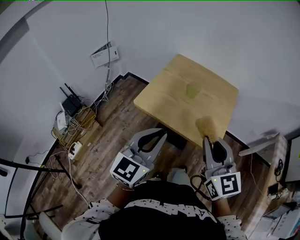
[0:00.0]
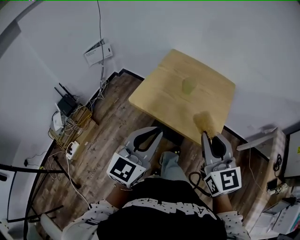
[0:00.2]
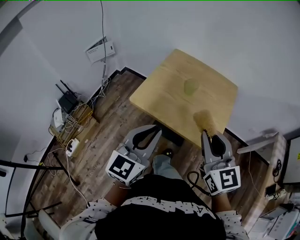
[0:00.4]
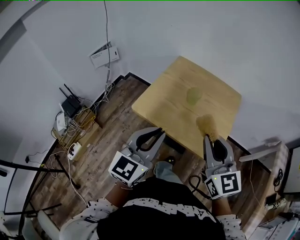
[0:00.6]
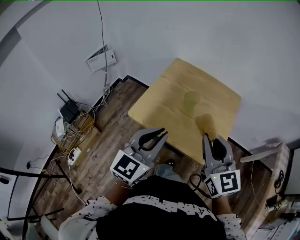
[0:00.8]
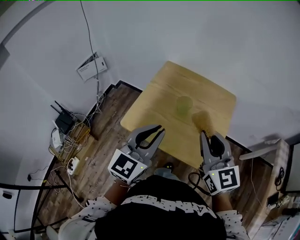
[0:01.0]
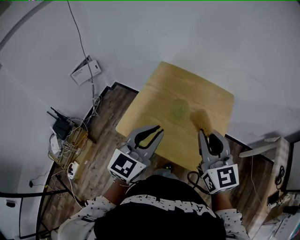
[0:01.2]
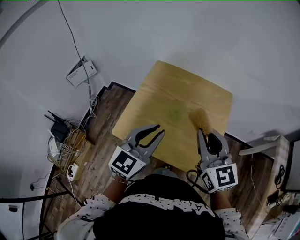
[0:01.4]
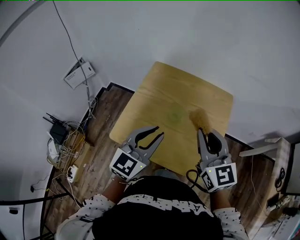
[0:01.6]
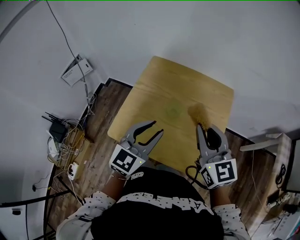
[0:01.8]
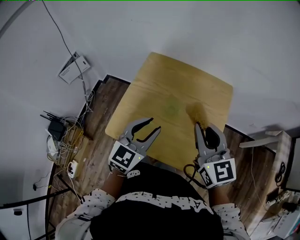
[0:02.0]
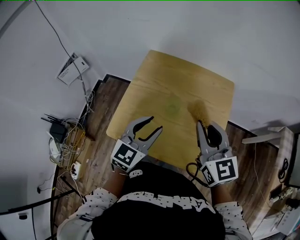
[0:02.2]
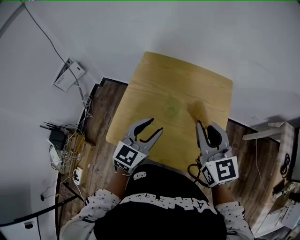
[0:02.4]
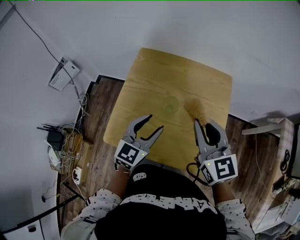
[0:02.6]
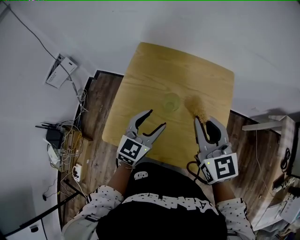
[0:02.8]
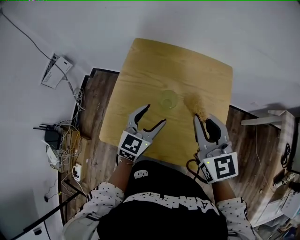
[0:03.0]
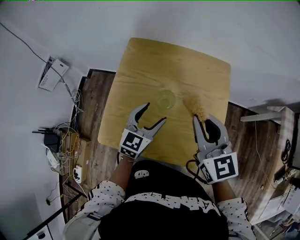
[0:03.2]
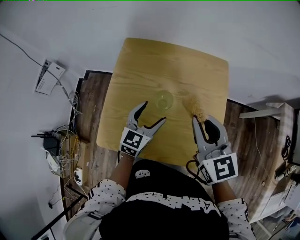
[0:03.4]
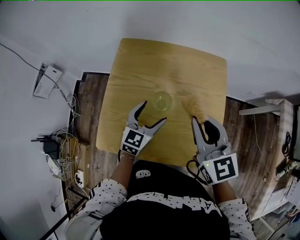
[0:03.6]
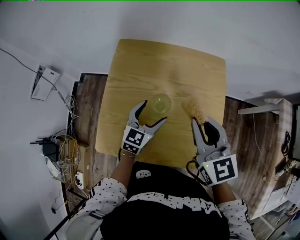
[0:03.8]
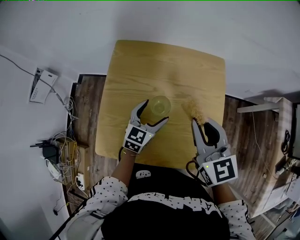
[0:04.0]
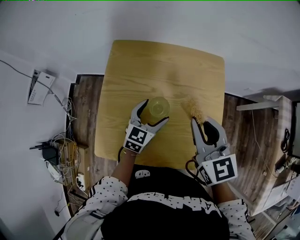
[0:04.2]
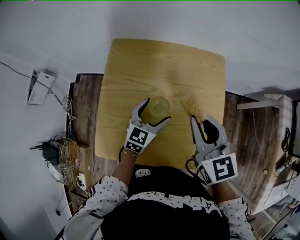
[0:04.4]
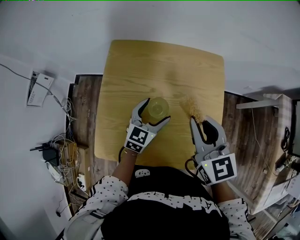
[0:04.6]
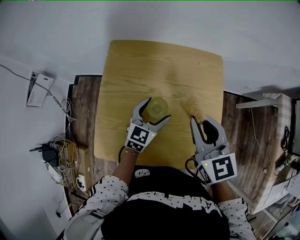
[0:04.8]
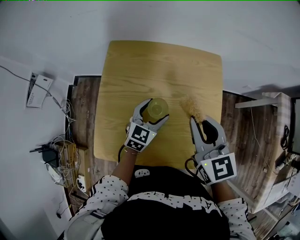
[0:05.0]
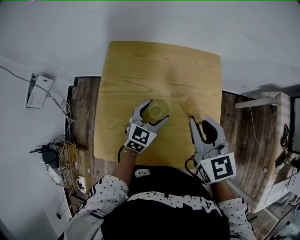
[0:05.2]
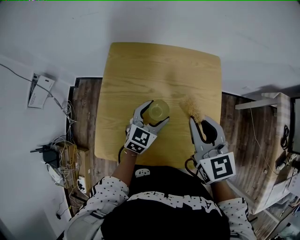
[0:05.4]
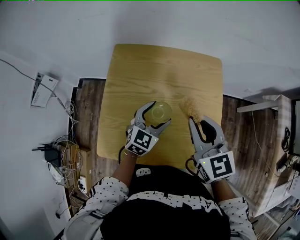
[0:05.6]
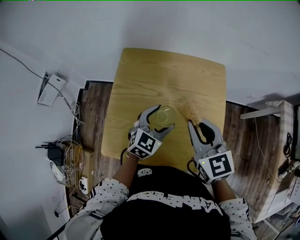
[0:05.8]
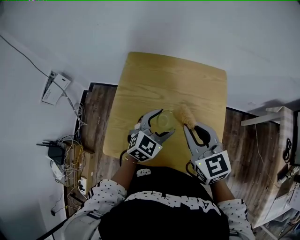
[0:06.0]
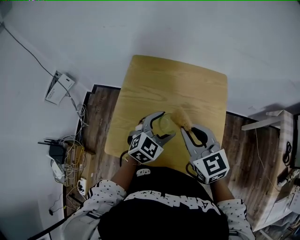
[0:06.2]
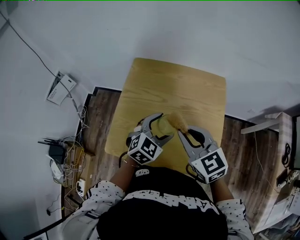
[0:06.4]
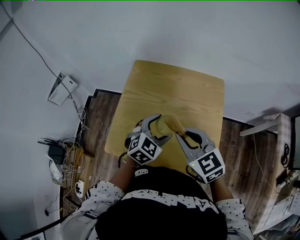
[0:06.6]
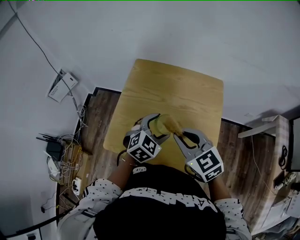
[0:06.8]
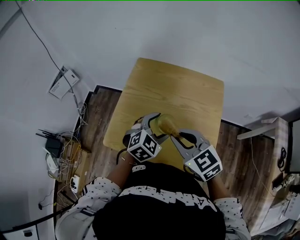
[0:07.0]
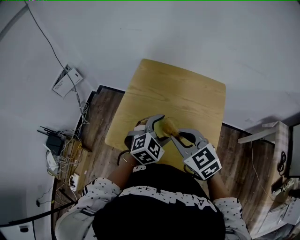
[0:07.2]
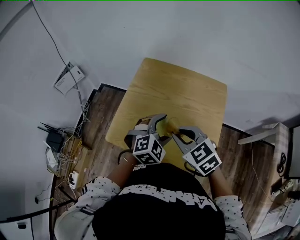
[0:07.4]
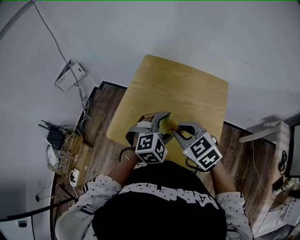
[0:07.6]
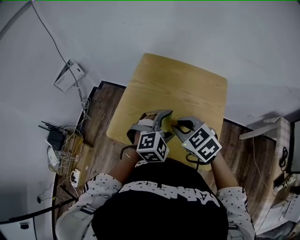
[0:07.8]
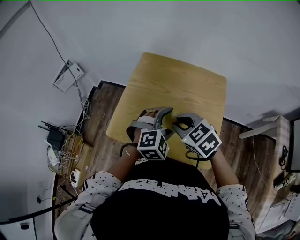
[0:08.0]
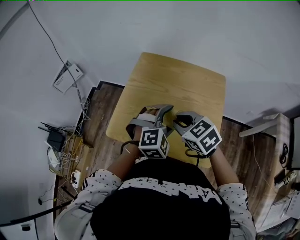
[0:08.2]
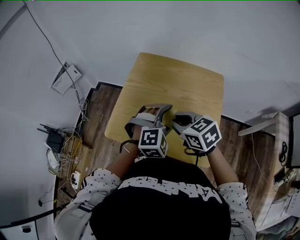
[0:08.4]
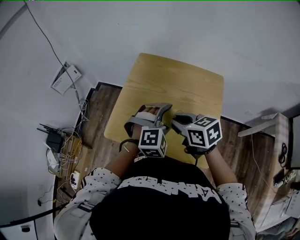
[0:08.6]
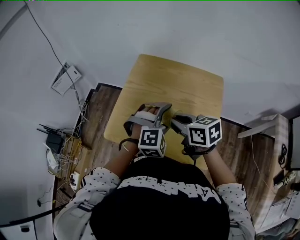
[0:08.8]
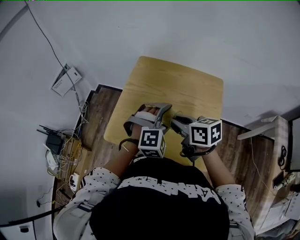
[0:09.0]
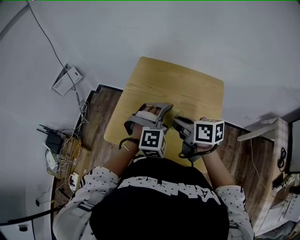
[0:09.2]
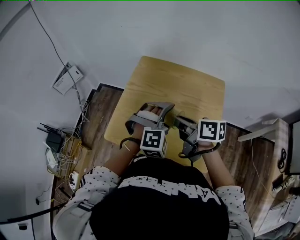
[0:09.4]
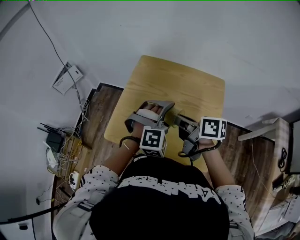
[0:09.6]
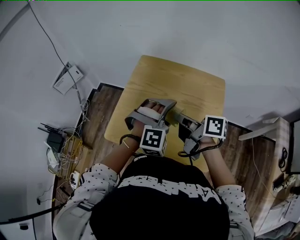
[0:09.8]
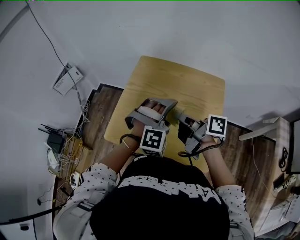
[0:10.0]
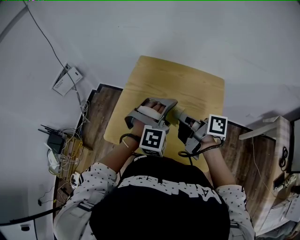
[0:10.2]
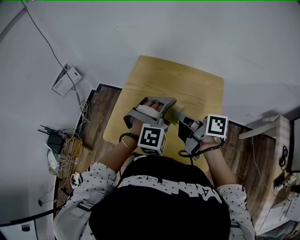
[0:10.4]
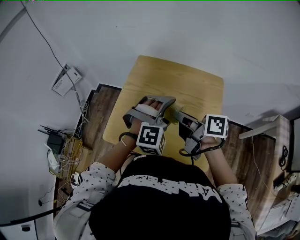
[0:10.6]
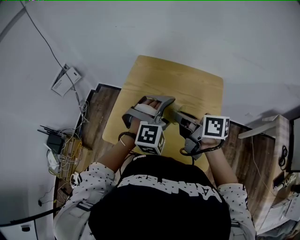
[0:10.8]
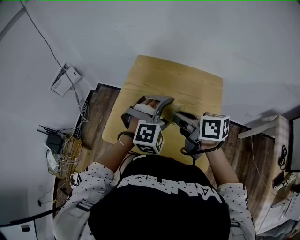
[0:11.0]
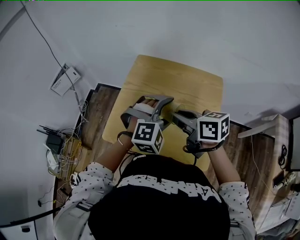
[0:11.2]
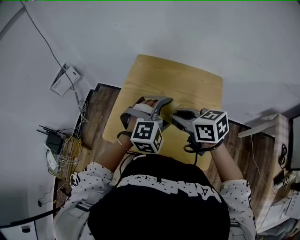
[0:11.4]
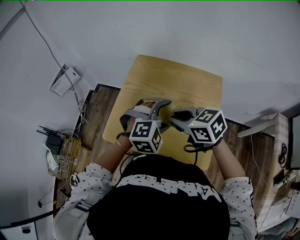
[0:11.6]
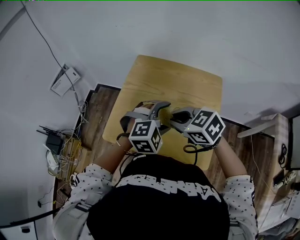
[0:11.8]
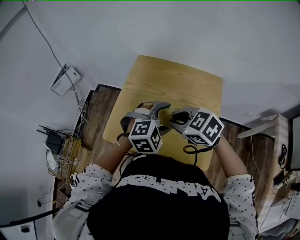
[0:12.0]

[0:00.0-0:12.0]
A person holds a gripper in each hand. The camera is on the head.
0:00.0 to 0:01.6: Both grippers travel together forward, roughly 25 cm.
0:01.6 to 0:03.0: The left gripper is displaced downward and forward by some 15 cm, and opens. The right gripper heads forward and downward, covering some 10 cm.
0:03.0 to 0:04.4: The left gripper goes approximately 10 cm downward and forward.
0:04.4 to 0:06.0: The left gripper heads upward, covering about 5 cm.
0:06.0 to 0:07.6: The left gripper heads backward, covering roughly 5 cm, and swivels approximately 20 degrees; the right gripper goes approximately 10 cm backward and to the left, and changes its angle by some 30 degrees.
0:07.6 to 0:09.0: The right gripper rotates around the line of its fingers by approximately 40 degrees, clockwise from behind, while the left gripper rotates roughly 20 degrees.
0:09.0 to 0:10.4: The right gripper rotates roughly 30 degrees.
0:10.4 to 0:12.0: The left gripper changes its angle by about 30 degrees; the right gripper moves some 5 cm, and twists some 70 degrees counterclockwise, seen from behind.

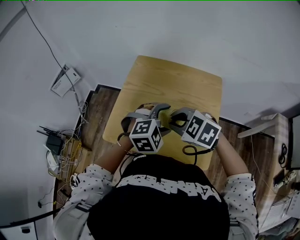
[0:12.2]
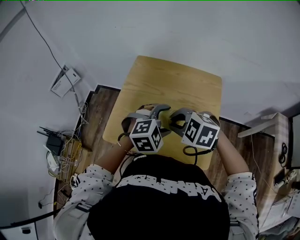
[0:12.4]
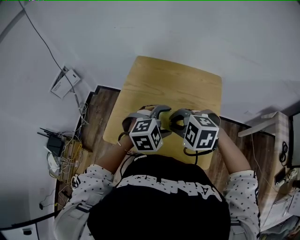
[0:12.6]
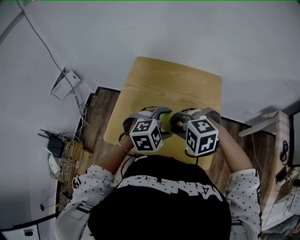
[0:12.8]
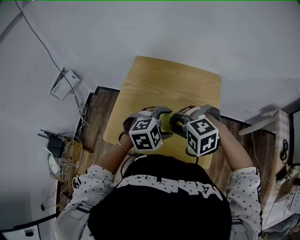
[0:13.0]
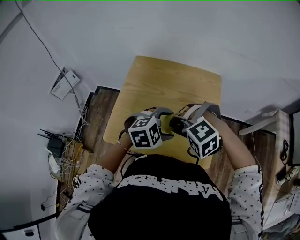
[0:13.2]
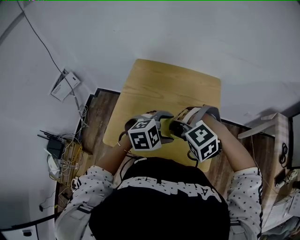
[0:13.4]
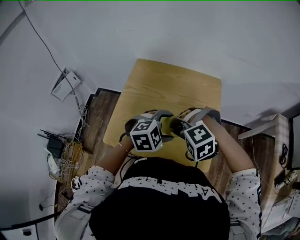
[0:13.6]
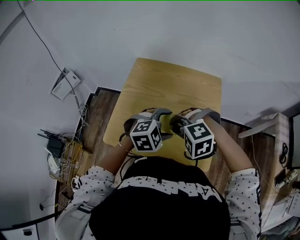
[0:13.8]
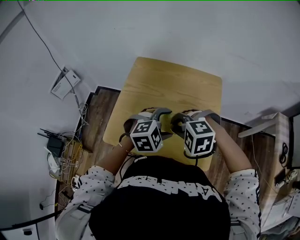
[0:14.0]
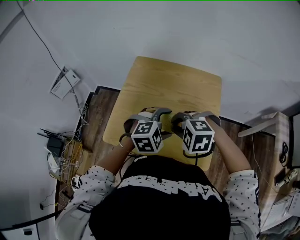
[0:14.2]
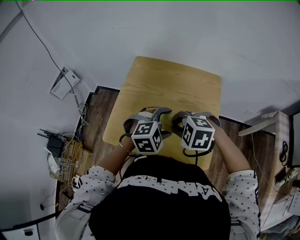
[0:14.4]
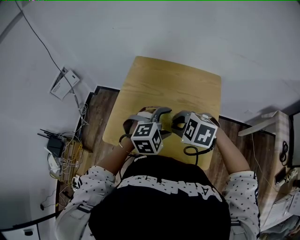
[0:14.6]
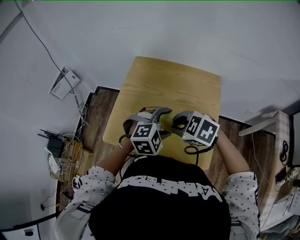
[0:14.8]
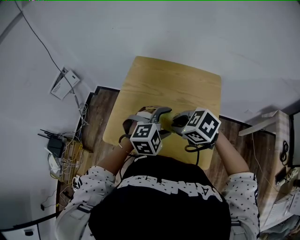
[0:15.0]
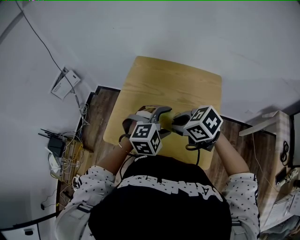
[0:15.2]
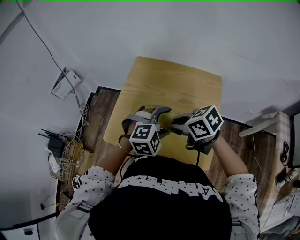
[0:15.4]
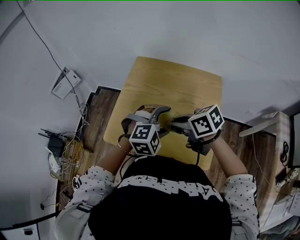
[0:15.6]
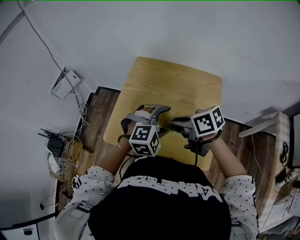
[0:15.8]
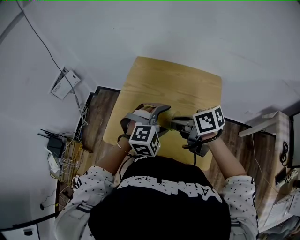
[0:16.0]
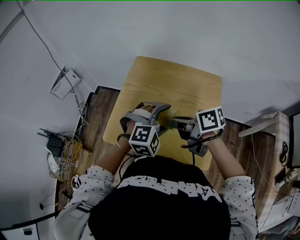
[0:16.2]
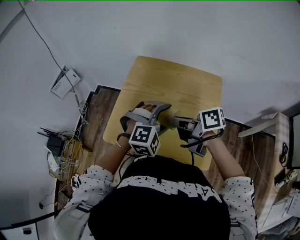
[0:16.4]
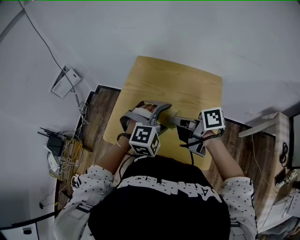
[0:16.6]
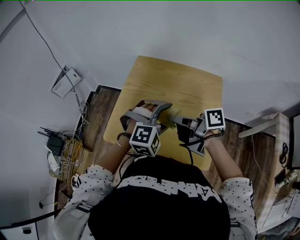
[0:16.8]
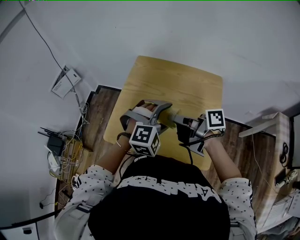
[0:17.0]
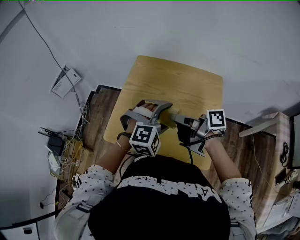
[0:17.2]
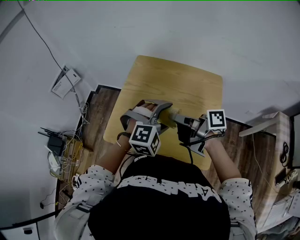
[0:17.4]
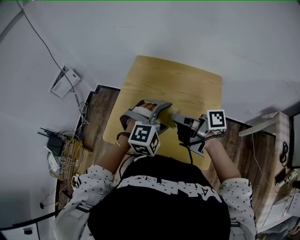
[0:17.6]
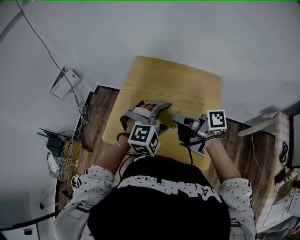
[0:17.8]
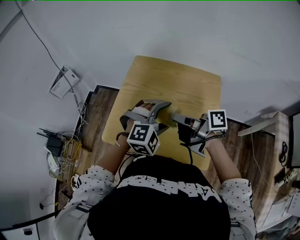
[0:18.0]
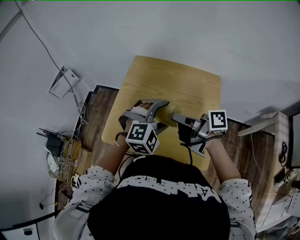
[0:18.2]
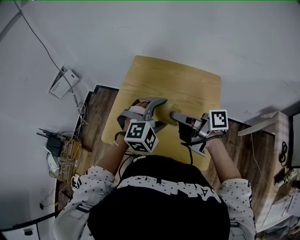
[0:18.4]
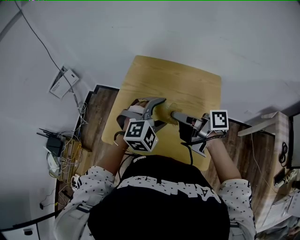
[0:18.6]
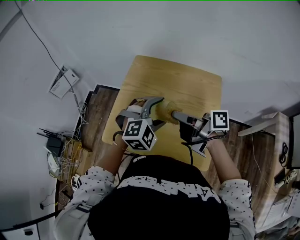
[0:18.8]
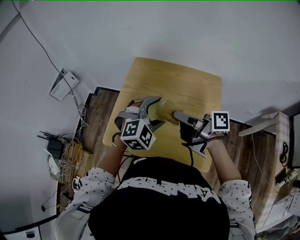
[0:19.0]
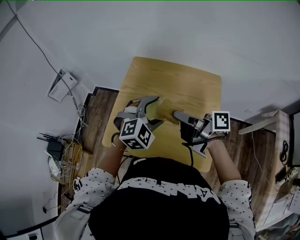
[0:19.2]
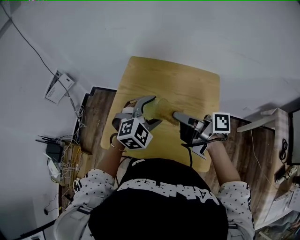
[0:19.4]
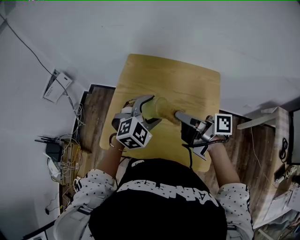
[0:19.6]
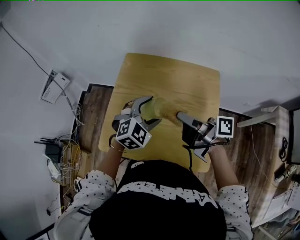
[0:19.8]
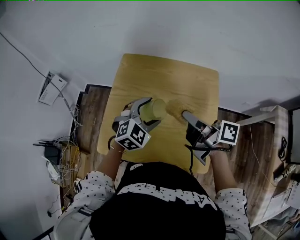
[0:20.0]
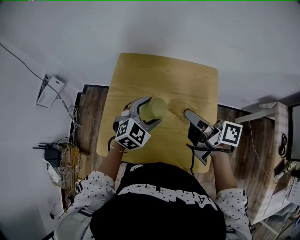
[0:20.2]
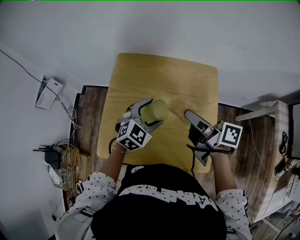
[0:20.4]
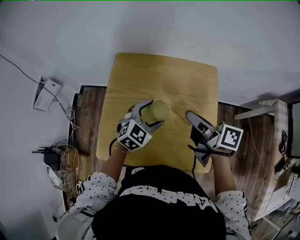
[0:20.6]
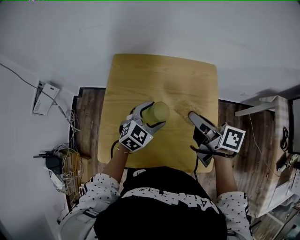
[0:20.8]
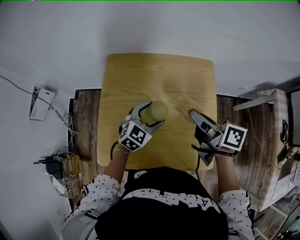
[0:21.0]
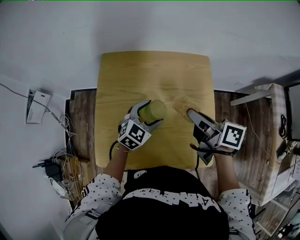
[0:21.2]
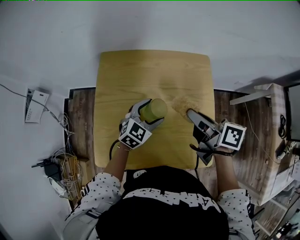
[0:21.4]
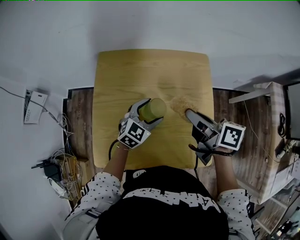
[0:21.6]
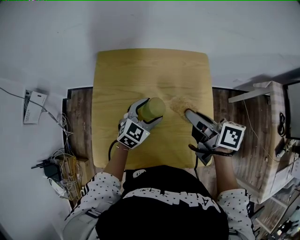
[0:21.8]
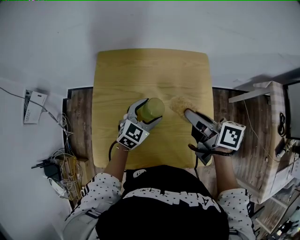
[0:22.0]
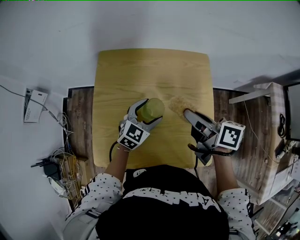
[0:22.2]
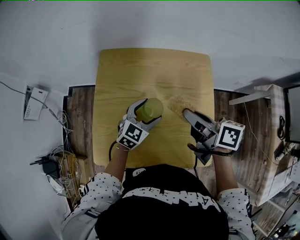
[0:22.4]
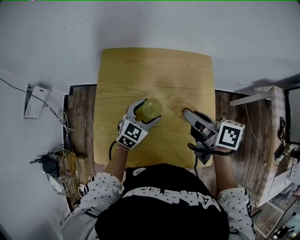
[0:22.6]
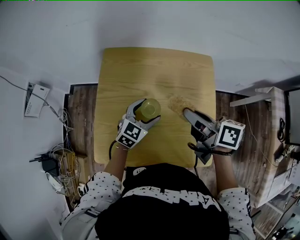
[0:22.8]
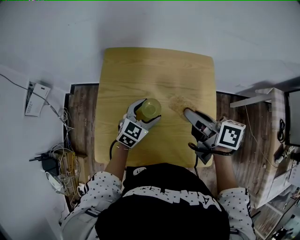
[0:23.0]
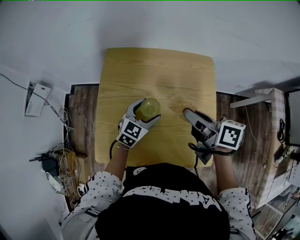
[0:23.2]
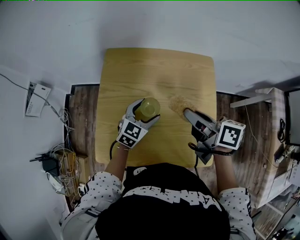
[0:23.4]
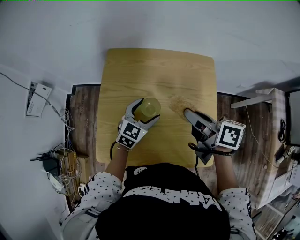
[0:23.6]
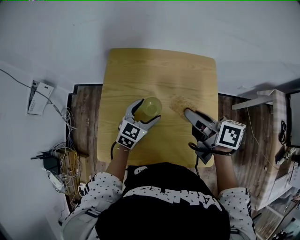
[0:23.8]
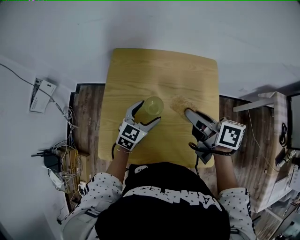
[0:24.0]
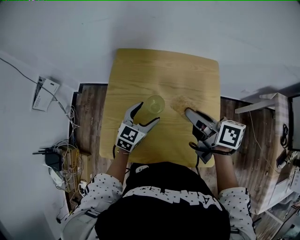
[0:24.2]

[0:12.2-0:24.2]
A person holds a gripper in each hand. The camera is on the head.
0:12.2 to 0:13.8: The right gripper swivels some 40 degrees.
0:13.8 to 0:15.2: The right gripper twists about 60 degrees clockwise, seen from behind.
0:15.2 to 0:16.6: The right gripper rotates around the line of its fingers by about 50 degrees, clockwise from behind.
0:16.6 to 0:18.2: The grippers make only small movements.
0:18.2 to 0:19.8: The right gripper changes place by approximately 5 cm, while the left gripper moves forward, about 5 cm, and turns by approximately 20 degrees.
0:19.8 to 0:21.2: The left gripper travels downward by roughly 10 cm, and turns by roughly 20 degrees; the right gripper is displaced to the right by about 5 cm, and swivels about 30 degrees.
0:21.2 to 0:22.6: The grippers stay close to where they were, moving slightly.
0:22.6 to 0:24.2: The left gripper shifts by some 5 cm.
